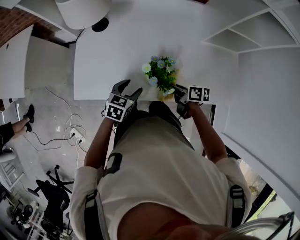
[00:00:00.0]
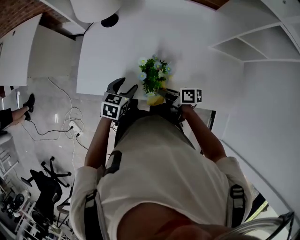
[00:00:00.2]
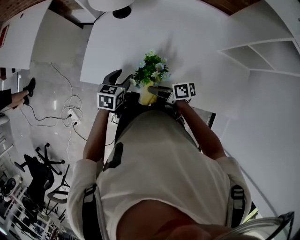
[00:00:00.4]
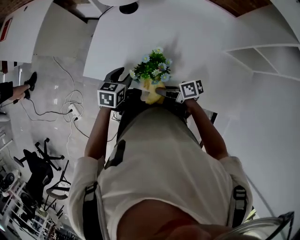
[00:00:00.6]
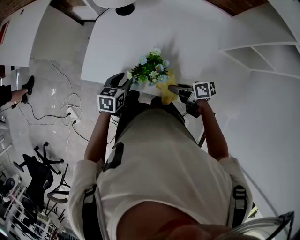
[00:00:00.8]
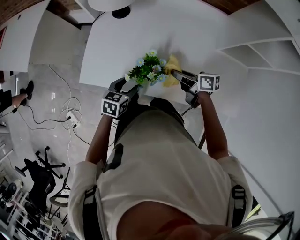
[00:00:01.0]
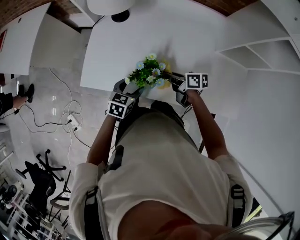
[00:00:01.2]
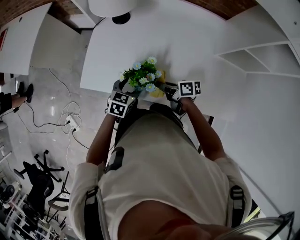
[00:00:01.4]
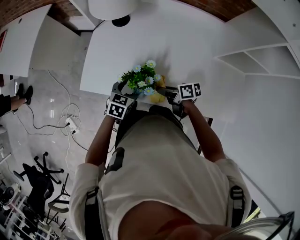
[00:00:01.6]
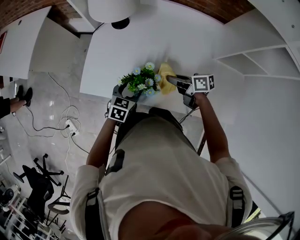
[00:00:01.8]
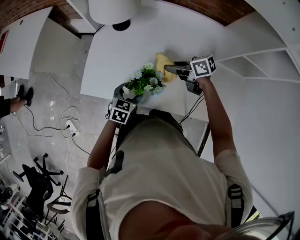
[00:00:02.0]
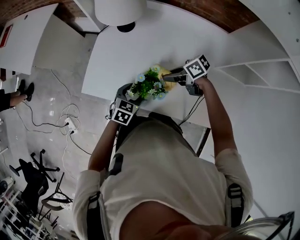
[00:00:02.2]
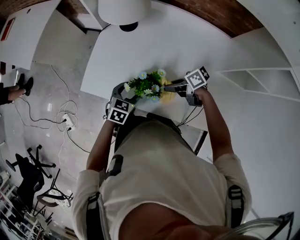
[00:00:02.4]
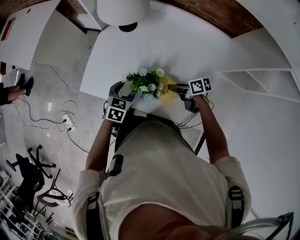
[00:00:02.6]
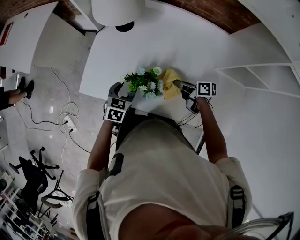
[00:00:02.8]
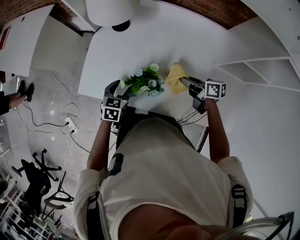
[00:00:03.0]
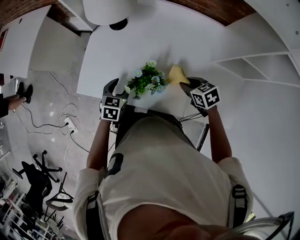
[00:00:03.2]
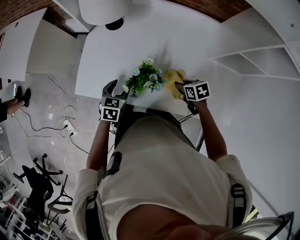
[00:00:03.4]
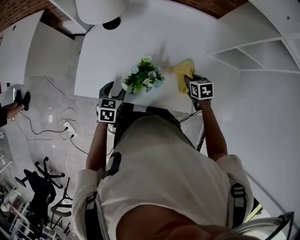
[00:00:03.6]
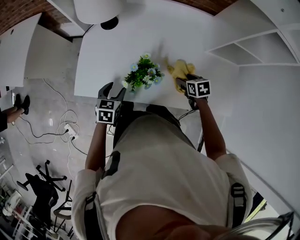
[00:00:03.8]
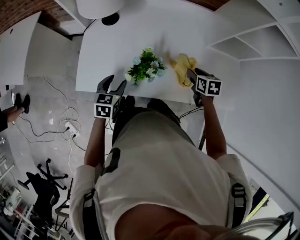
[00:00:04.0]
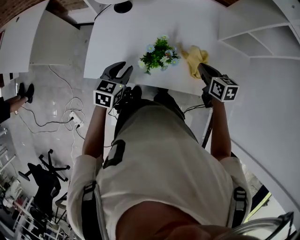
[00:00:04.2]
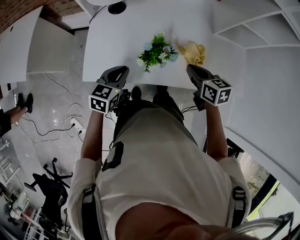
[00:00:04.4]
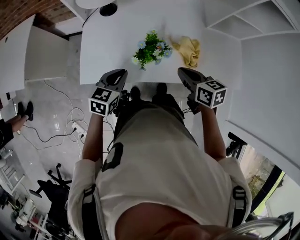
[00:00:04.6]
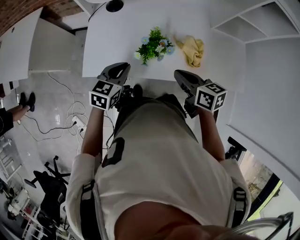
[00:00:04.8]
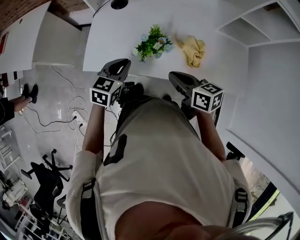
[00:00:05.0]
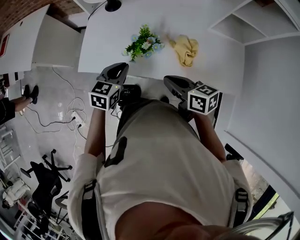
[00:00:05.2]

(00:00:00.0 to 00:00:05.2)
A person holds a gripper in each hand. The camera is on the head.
00:00:00.0 - 00:00:01.8: The right gripper moves up and down over about 5 cm, changing direction 2 times, and changes its angle by approximately 20 degrees.
00:00:01.8 - 00:00:03.4: The right gripper moves up and down over some 10 cm, changing direction 2 times, and tips its fingers downward by about 30 degrees.
00:00:03.4 - 00:00:05.2: The left gripper is displaced upward and backward by some 15 cm, and closes its fingers. The right gripper shifts roughly 25 cm upward, backward and to the left, angles its fingers upward, by about 40 degrees, and opens, then closes once more.

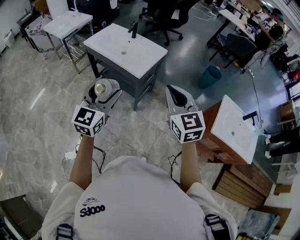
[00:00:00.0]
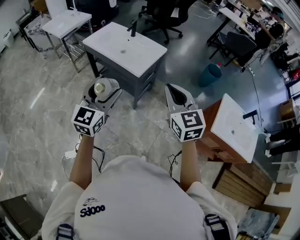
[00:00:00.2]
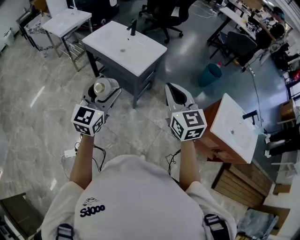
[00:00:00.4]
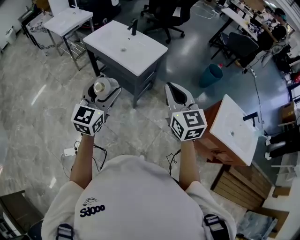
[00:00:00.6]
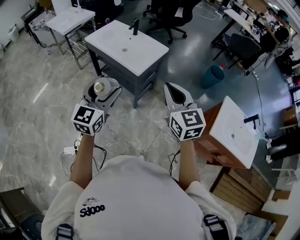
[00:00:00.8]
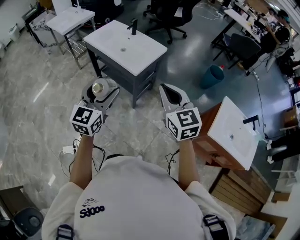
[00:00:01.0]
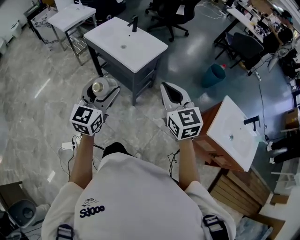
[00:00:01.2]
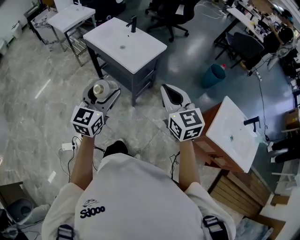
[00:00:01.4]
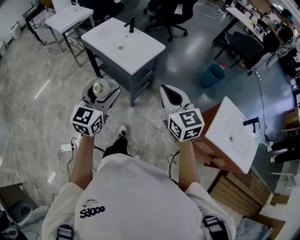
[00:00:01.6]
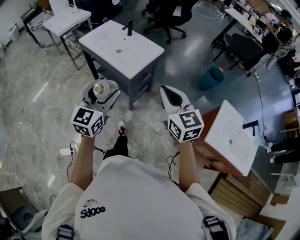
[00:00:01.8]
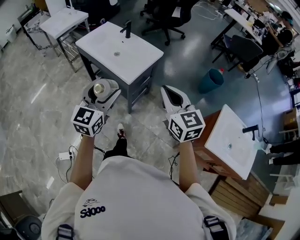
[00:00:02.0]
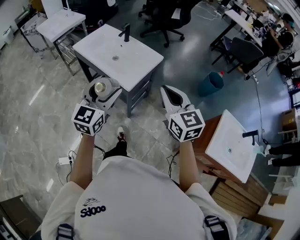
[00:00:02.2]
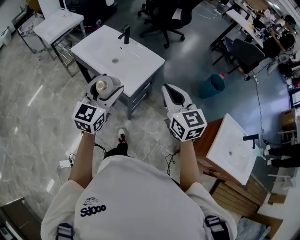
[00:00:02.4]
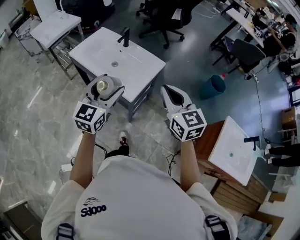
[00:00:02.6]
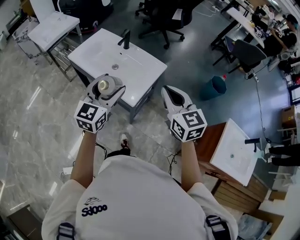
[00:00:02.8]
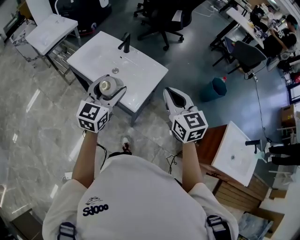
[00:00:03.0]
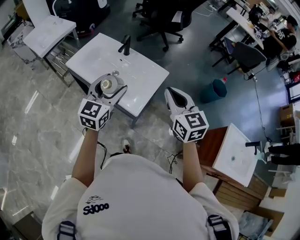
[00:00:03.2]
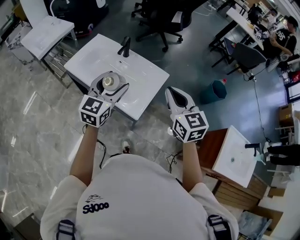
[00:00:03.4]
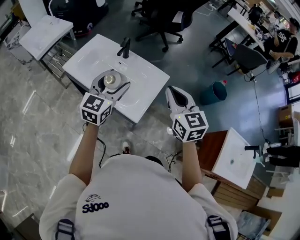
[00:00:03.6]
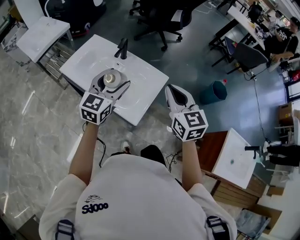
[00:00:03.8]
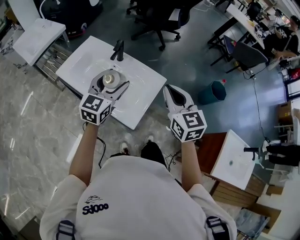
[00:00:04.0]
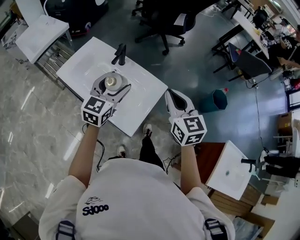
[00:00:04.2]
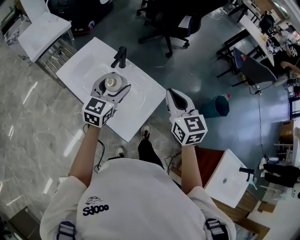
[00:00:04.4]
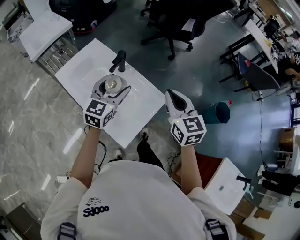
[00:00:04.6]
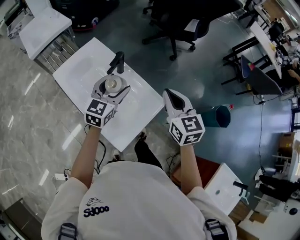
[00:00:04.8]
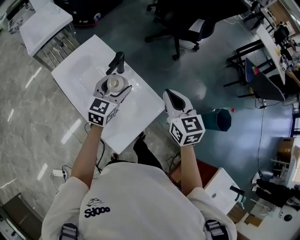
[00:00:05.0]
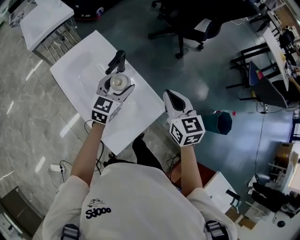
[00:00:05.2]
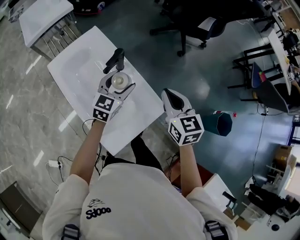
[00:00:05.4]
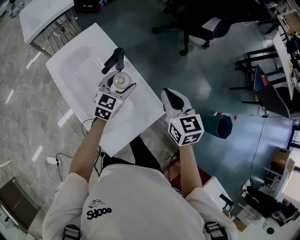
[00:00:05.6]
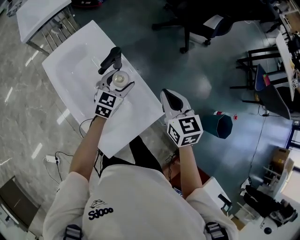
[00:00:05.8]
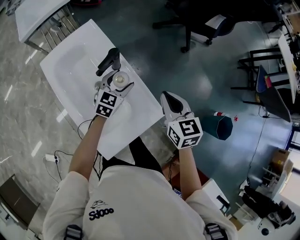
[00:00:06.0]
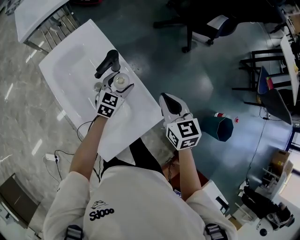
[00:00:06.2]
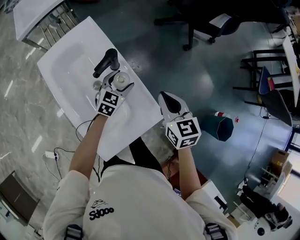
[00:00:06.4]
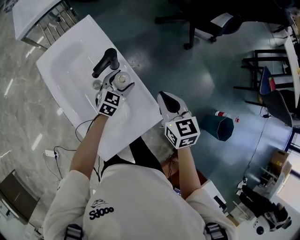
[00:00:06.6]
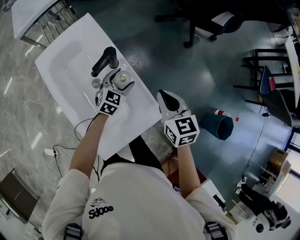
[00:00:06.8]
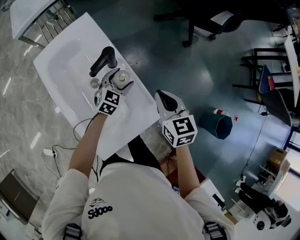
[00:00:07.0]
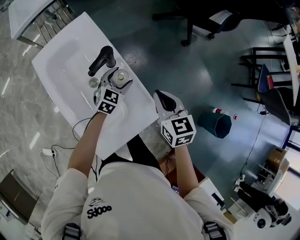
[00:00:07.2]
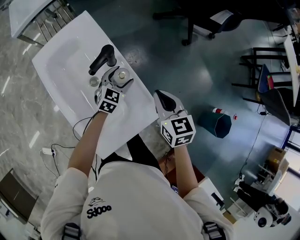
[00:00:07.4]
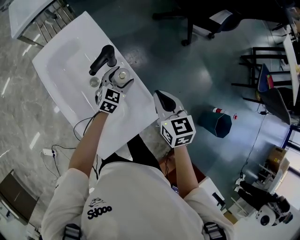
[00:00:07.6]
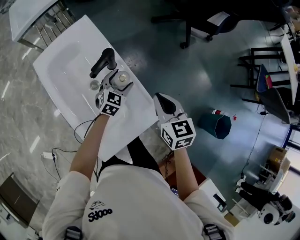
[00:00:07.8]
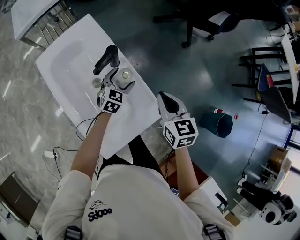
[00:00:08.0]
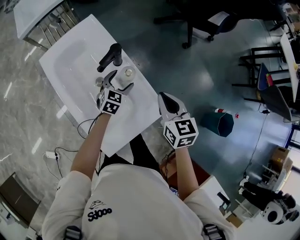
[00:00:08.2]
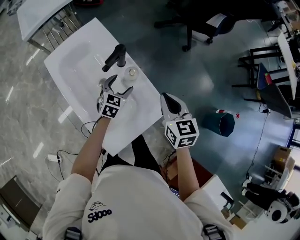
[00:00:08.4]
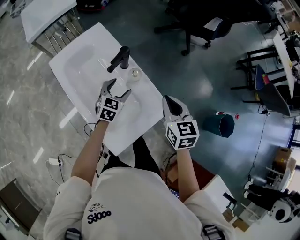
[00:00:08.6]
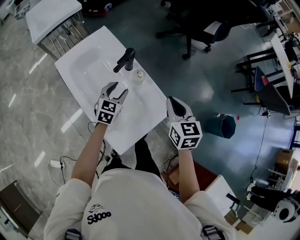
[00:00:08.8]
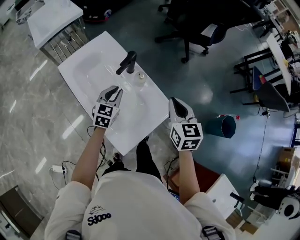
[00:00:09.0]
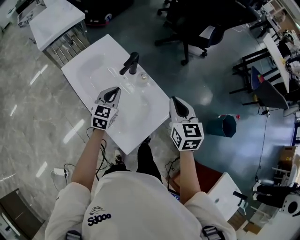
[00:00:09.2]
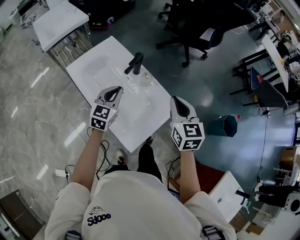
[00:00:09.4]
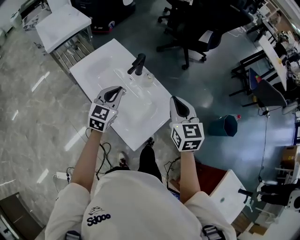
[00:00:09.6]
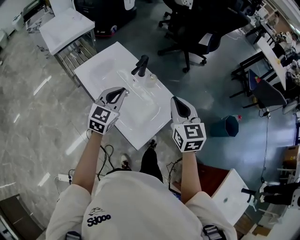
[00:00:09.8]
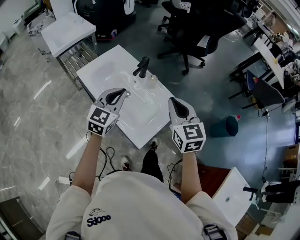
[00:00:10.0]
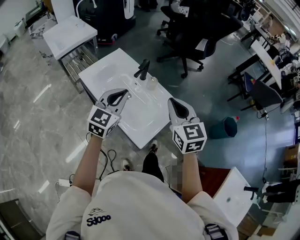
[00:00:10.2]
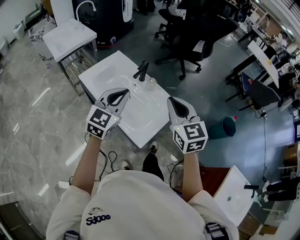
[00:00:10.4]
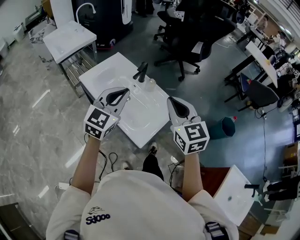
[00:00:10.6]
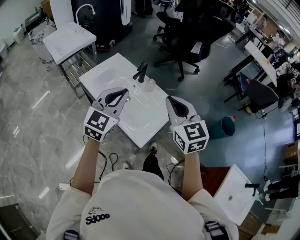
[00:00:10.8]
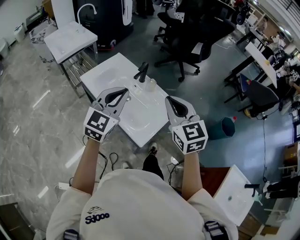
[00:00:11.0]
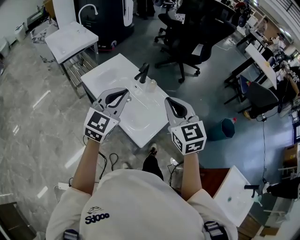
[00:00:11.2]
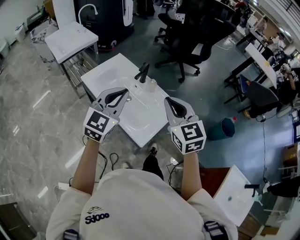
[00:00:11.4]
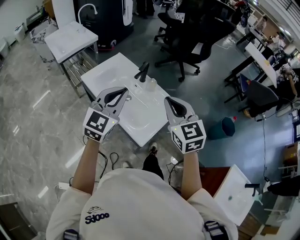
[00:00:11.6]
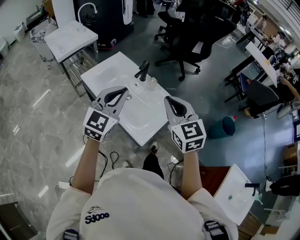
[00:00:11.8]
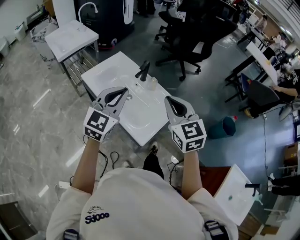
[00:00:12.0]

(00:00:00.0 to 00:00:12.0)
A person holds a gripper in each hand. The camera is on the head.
00:00:00.0 - 00:00:01.6: Both grippers travel together to the right, about 5 cm.
00:00:01.6 - 00:00:03.0: Both grippers travel together forward, roughly 25 cm.
00:00:03.0 - 00:00:04.4: The grippers both shift forward by approximately 20 cm.
00:00:04.4 - 00:00:06.0: The right gripper moves forward and downward, some 20 cm. The left gripper moves downward and forward, about 25 cm.
00:00:06.0 - 00:00:07.6: The left gripper moves downward, approximately 5 cm.
00:00:07.6 - 00:00:09.0: The right gripper moves upward and backward, approximately 10 cm; the left gripper travels to the left, upward and backward by approximately 15 cm, and closes.
00:00:09.0 - 00:00:10.4: The left gripper goes approximately 25 cm upward and backward, and turns by roughly 30 degrees, while the right gripper is displaced upward, backward and to the left by approximately 20 cm.
00:00:10.4 - 00:00:12.0: The grippers stay close to where they were, moving slightly.

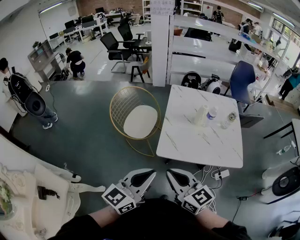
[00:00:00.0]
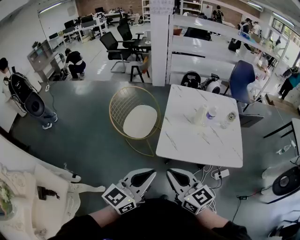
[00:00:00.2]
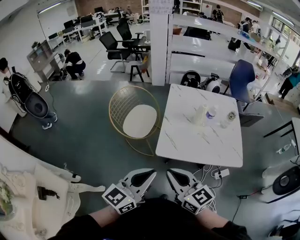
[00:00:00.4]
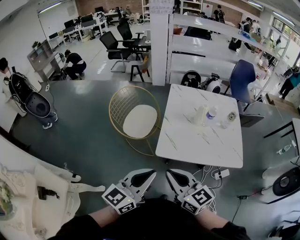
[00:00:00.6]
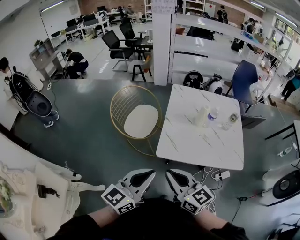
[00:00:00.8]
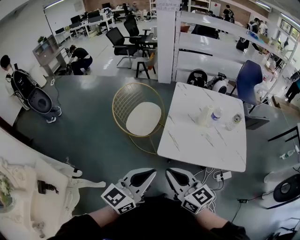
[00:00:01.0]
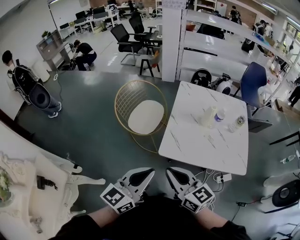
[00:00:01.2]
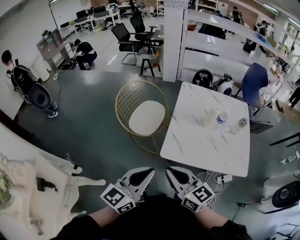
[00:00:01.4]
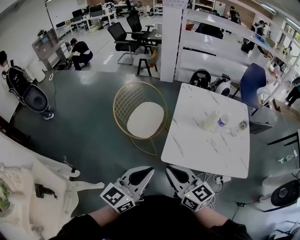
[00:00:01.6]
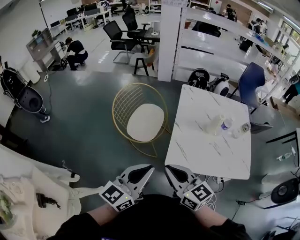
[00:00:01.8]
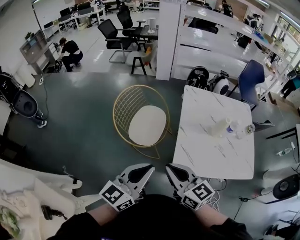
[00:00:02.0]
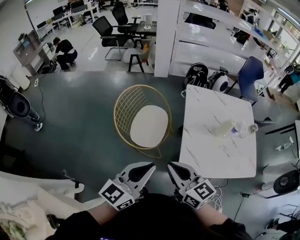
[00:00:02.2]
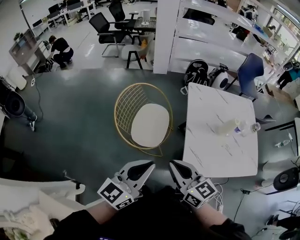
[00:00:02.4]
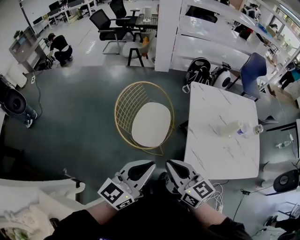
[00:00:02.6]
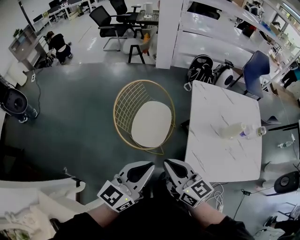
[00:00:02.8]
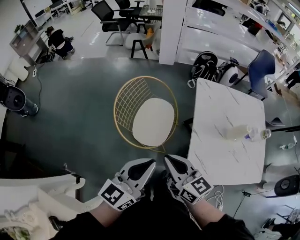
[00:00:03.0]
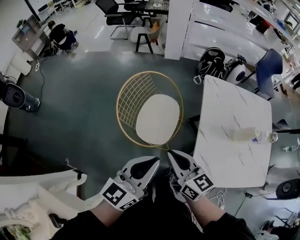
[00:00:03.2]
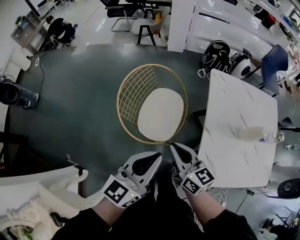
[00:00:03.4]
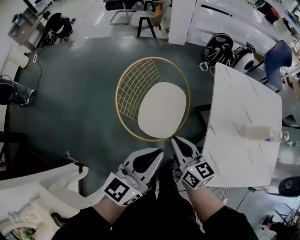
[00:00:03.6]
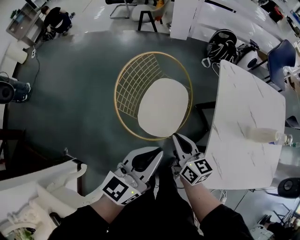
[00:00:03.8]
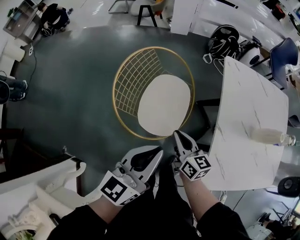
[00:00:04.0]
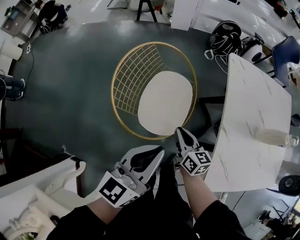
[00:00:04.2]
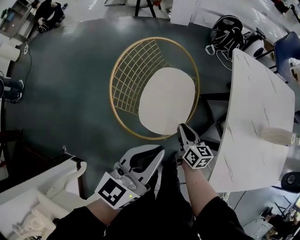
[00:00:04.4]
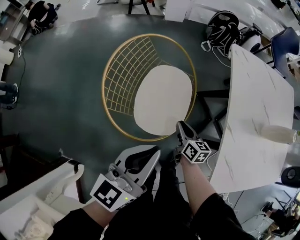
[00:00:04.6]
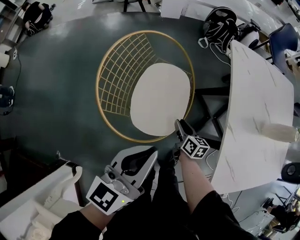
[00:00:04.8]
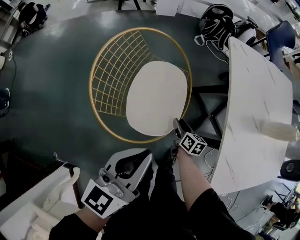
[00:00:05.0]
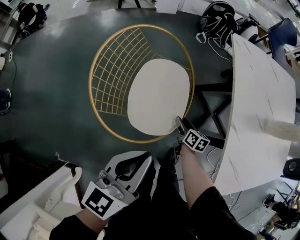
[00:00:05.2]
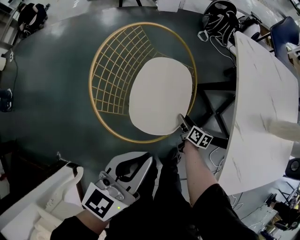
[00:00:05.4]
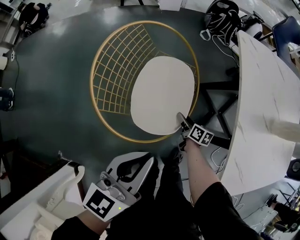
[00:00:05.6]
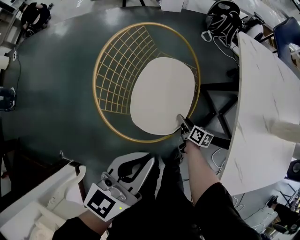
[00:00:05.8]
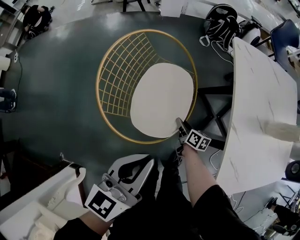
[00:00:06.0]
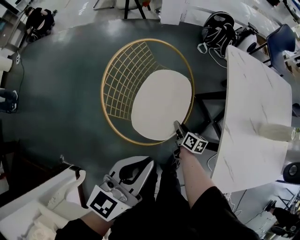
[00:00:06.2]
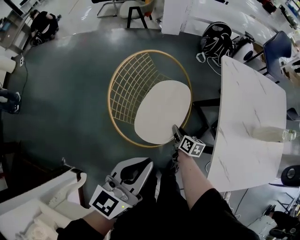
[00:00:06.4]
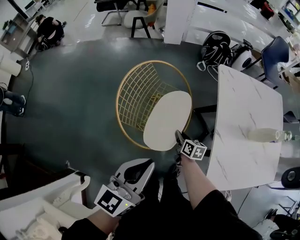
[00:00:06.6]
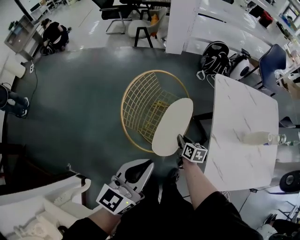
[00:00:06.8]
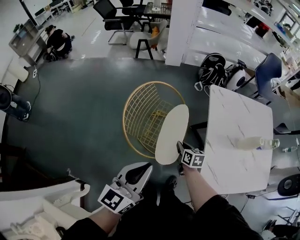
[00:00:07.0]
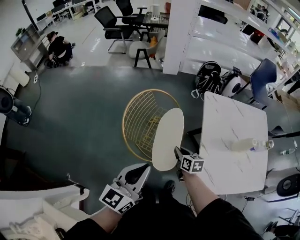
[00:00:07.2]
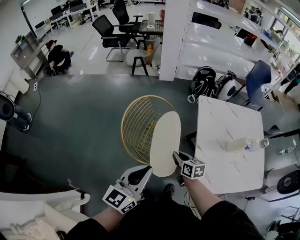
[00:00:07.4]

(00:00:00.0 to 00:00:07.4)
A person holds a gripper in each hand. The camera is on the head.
00:00:00.0 - 00:00:01.4: The grippers stay close to where they were, moving slightly.
00:00:01.4 - 00:00:03.0: The grippers both shift forward and to the left by roughly 30 cm.
00:00:03.0 - 00:00:04.4: The right gripper heads downward and forward, covering approximately 35 cm, and rotates roughly 30 degrees; the left gripper goes some 15 cm downward and forward.
00:00:04.4 - 00:00:06.0: The right gripper is displaced downward by approximately 15 cm, rotates roughly 20 degrees, and opens and closes again.
00:00:06.0 - 00:00:07.4: The left gripper travels upward by approximately 15 cm. Meanwhile the right gripper is displaced upward by about 30 cm, and swivels roughly 30 degrees.
